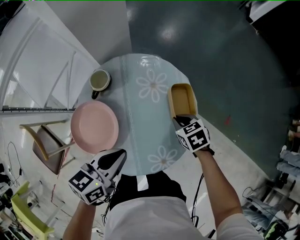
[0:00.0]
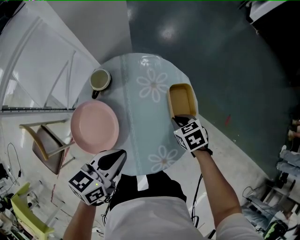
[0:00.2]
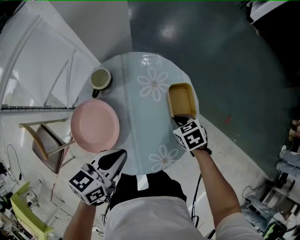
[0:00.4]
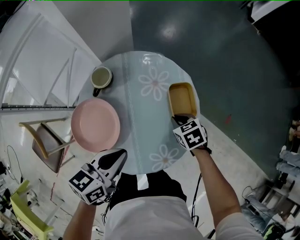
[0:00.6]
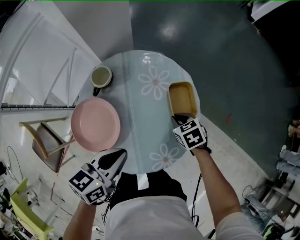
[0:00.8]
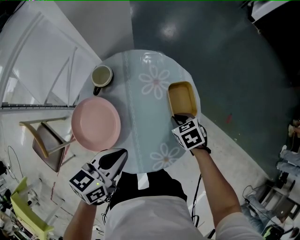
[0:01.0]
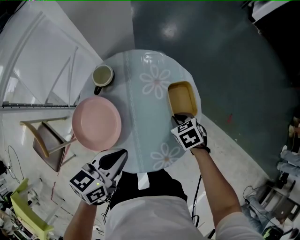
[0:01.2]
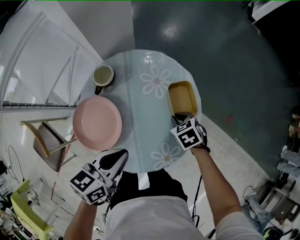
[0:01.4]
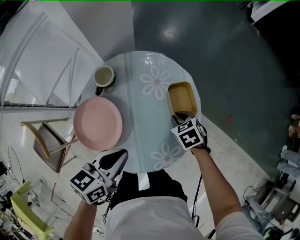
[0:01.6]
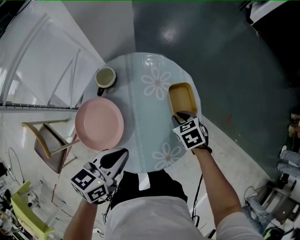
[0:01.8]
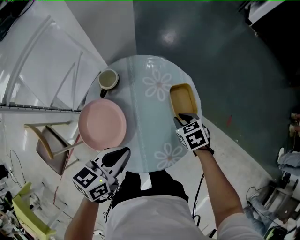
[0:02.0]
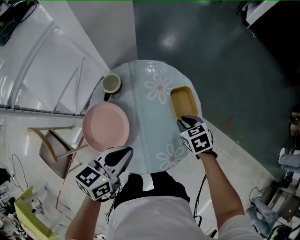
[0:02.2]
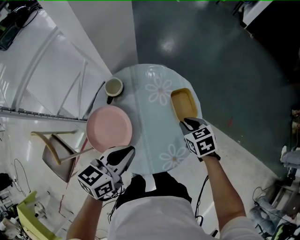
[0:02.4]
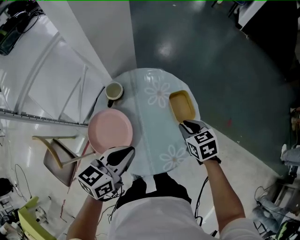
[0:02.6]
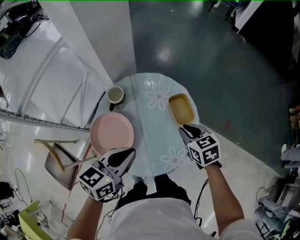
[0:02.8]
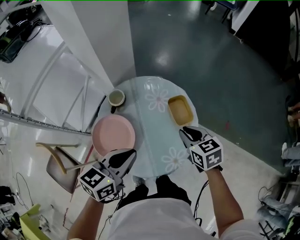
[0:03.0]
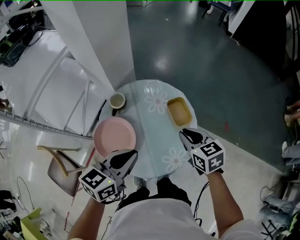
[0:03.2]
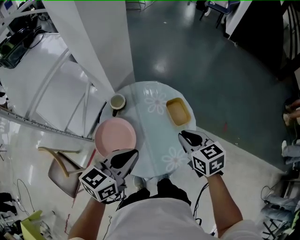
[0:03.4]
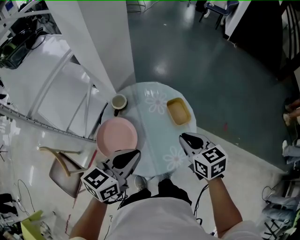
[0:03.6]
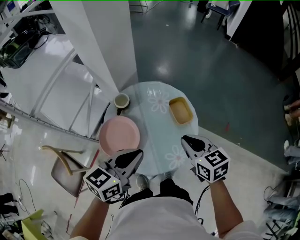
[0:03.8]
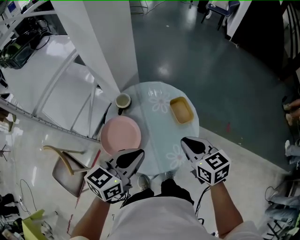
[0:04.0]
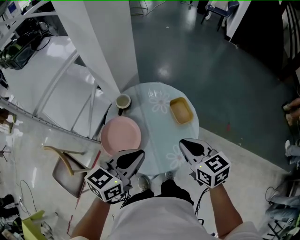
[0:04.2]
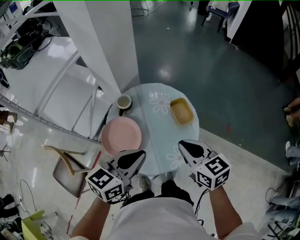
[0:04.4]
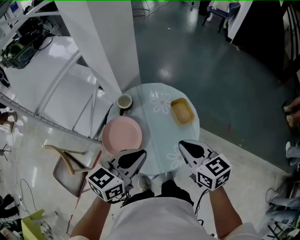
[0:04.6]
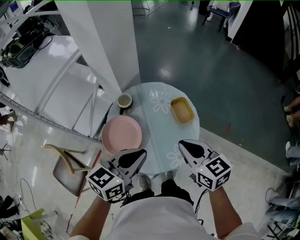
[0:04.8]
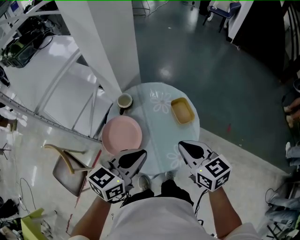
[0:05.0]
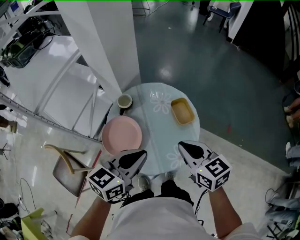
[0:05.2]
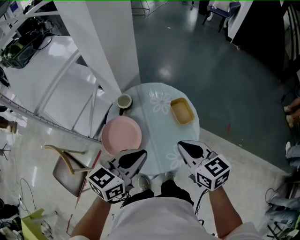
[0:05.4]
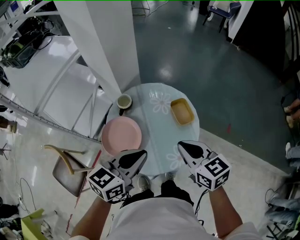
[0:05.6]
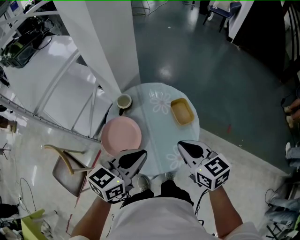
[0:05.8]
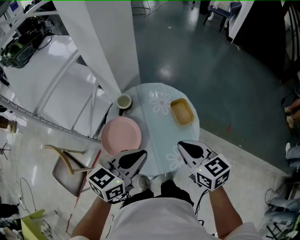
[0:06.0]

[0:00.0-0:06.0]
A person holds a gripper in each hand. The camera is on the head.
0:00.0 to 0:01.6: There are only small adjustments of the grippers.
0:01.6 to 0:03.0: The right gripper travels upward by about 20 cm, and changes its angle by roughly 30 degrees. Meanwhile the left gripper goes about 10 cm upward.
0:03.0 to 0:04.4: The right gripper goes some 15 cm upward and backward. Meanwhile the left gripper shifts some 5 cm upward.
0:04.4 to 0:06.0: Both grippers stay put.

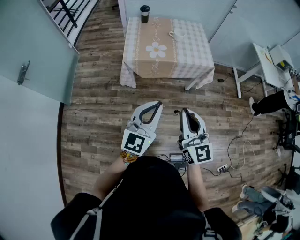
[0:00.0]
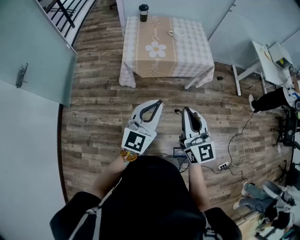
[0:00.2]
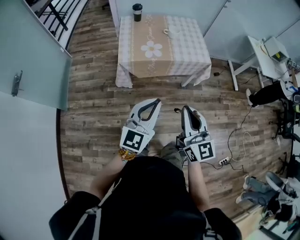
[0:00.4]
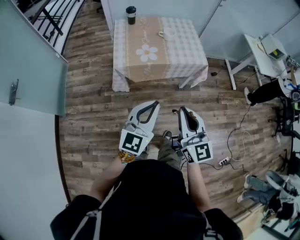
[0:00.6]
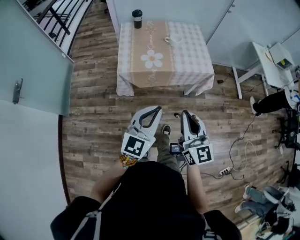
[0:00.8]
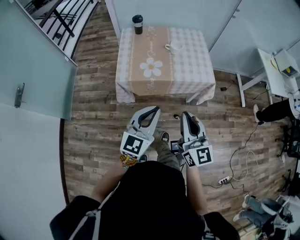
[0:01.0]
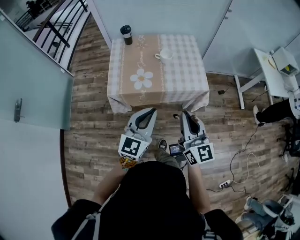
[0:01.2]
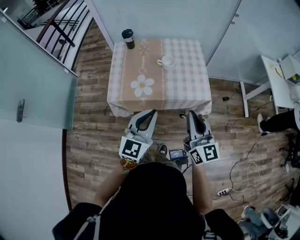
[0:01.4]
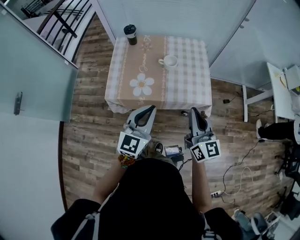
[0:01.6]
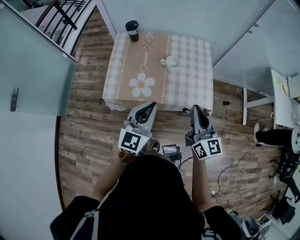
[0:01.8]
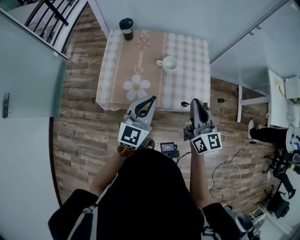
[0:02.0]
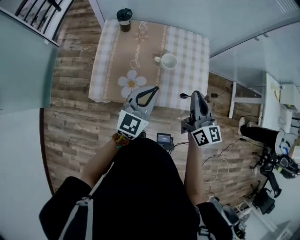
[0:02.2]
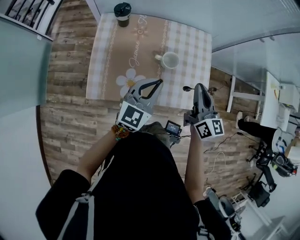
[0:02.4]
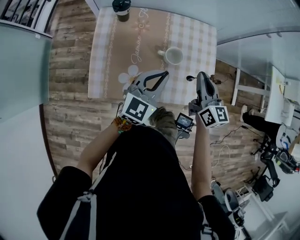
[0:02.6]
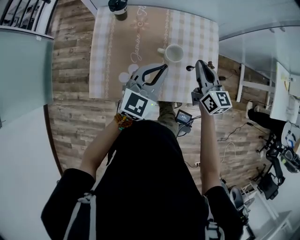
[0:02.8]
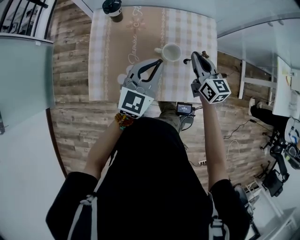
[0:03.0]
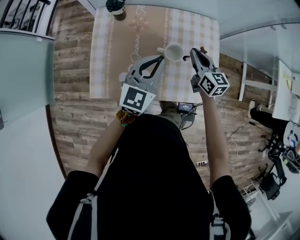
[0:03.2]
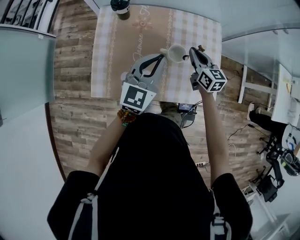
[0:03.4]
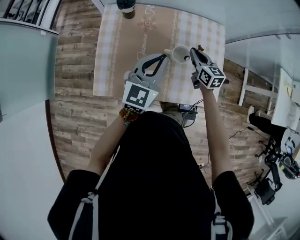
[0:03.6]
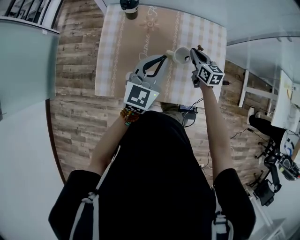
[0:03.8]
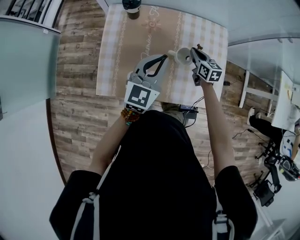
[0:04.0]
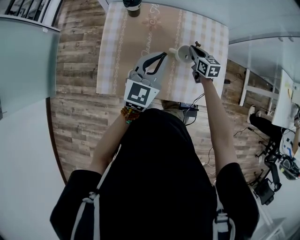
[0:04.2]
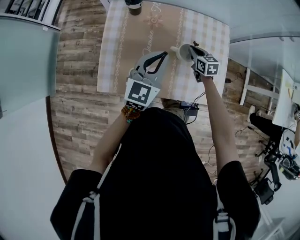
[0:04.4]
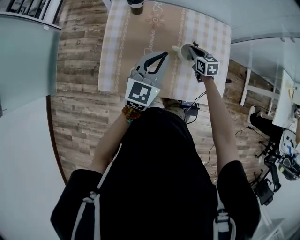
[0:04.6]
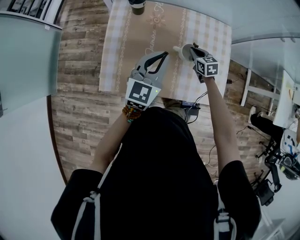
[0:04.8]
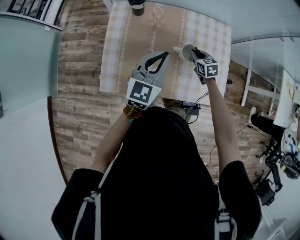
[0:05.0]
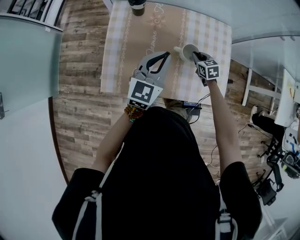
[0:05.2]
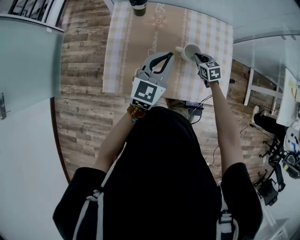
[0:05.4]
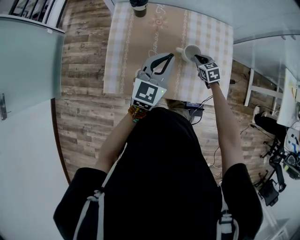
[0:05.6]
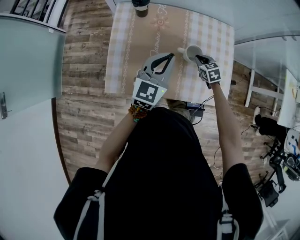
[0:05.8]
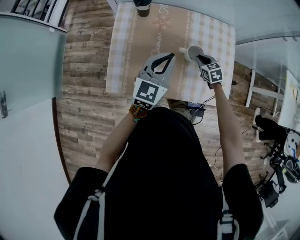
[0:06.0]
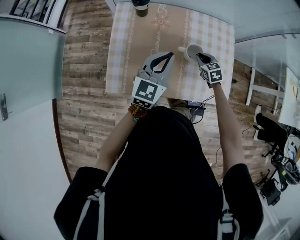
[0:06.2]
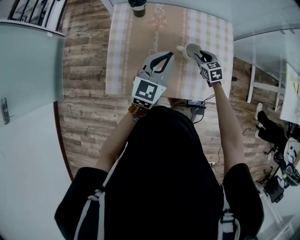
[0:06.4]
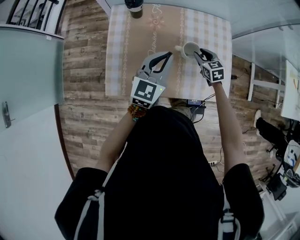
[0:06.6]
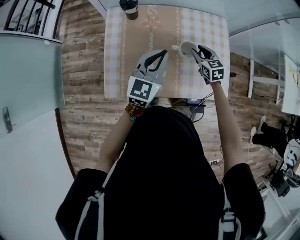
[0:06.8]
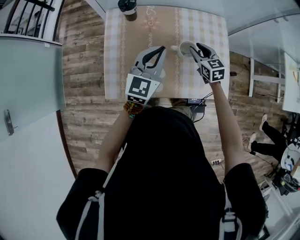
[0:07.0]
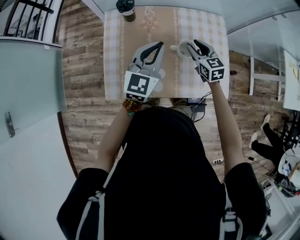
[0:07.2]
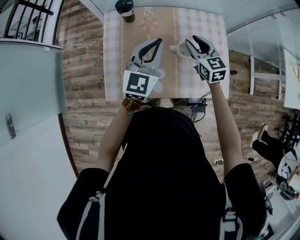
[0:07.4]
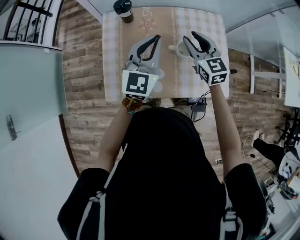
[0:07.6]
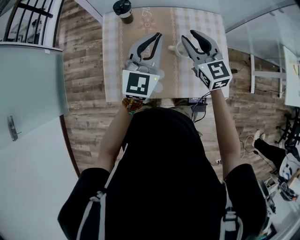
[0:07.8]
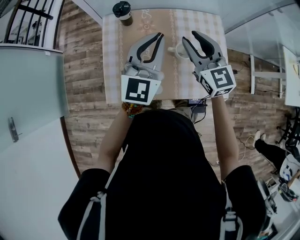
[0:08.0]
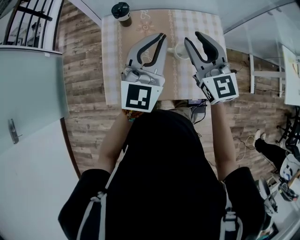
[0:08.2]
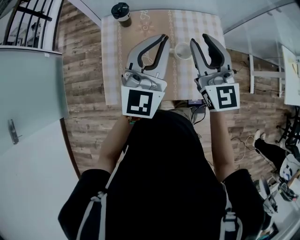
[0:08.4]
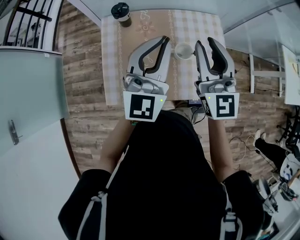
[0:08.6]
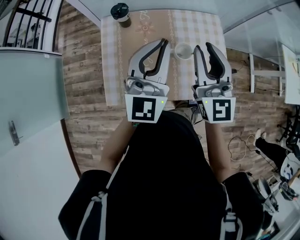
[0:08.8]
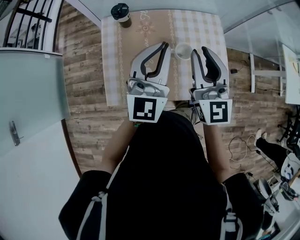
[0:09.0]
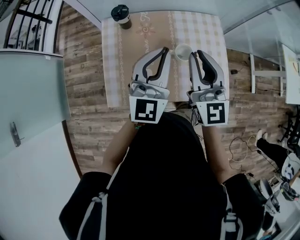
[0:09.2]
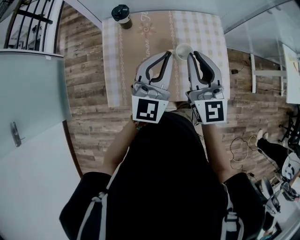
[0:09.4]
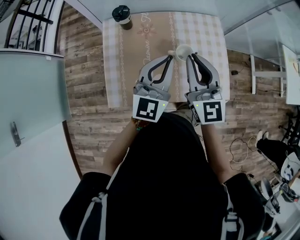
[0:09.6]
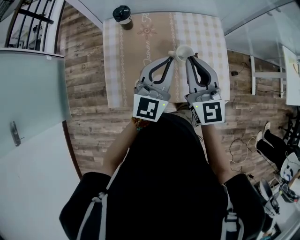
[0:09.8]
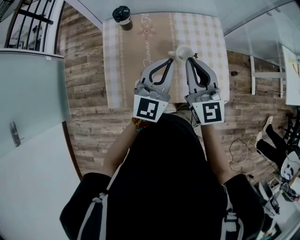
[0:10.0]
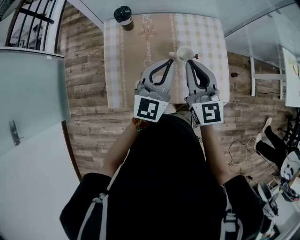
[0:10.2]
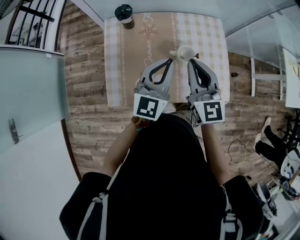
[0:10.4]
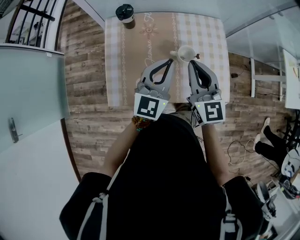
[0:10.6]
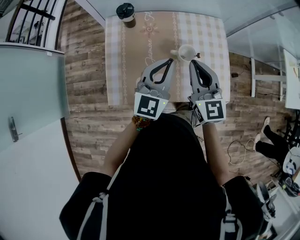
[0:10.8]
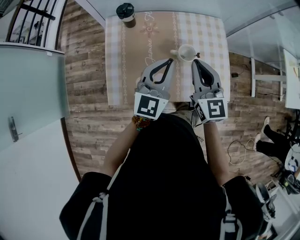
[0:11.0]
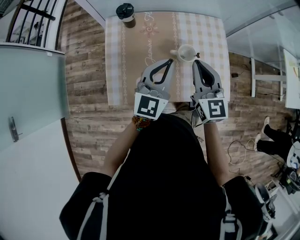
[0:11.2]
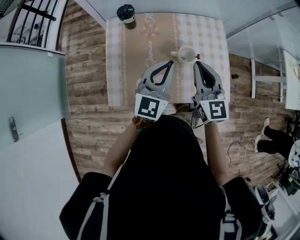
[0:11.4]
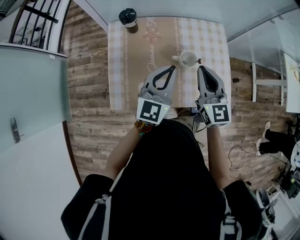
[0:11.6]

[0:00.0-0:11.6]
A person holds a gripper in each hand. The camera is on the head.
0:00.0 to 0:01.4: The right gripper shifts about 40 cm forward and to the right, while the left gripper travels forward by about 35 cm.
0:01.4 to 0:02.8: Both grippers move forward, approximately 40 cm. The right gripper turns by approximately 20 degrees.
0:02.8 to 0:04.4: The right gripper moves downward and forward, approximately 20 cm, and changes its angle by about 30 degrees; the left gripper moves to the left, about 5 cm.
0:04.4 to 0:05.8: The right gripper ends up roughly 5 cm from where it was.
0:05.8 to 0:07.2: The right gripper is displaced upward by approximately 15 cm, changes its angle by about 20 degrees, and opens.
0:07.2 to 0:08.8: The right gripper moves upward, some 25 cm, and angles its fingers upward, by about 30 degrees. The left gripper shifts approximately 10 cm upward.
0:08.8 to 0:10.2: The two grippers go roughly 10 cm downward.
0:10.2 to 0:11.6: The right gripper shifts by about 5 cm.

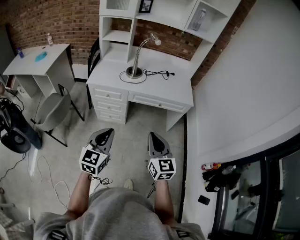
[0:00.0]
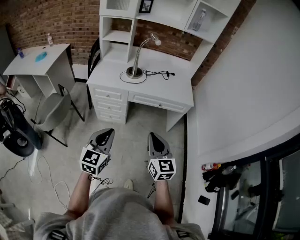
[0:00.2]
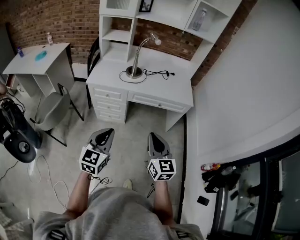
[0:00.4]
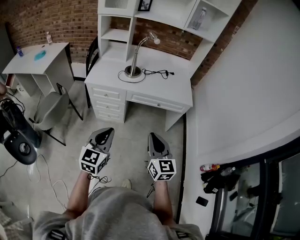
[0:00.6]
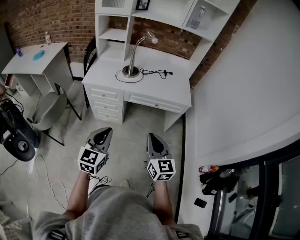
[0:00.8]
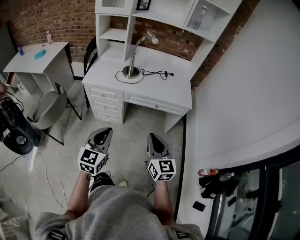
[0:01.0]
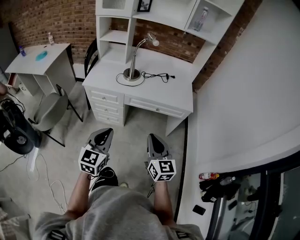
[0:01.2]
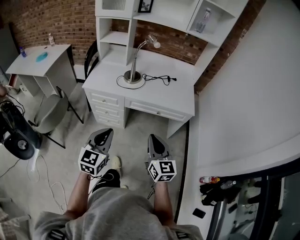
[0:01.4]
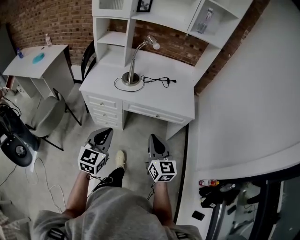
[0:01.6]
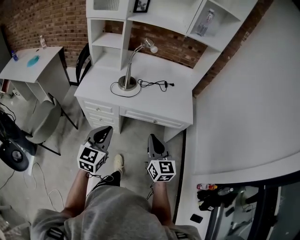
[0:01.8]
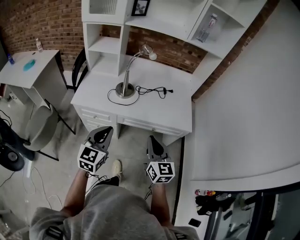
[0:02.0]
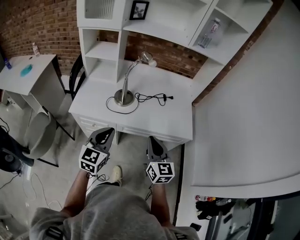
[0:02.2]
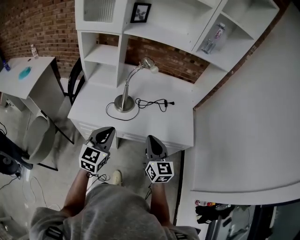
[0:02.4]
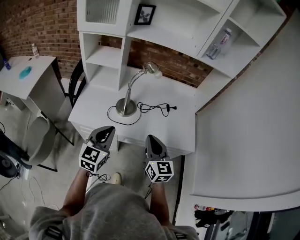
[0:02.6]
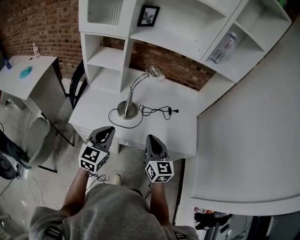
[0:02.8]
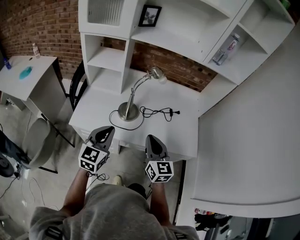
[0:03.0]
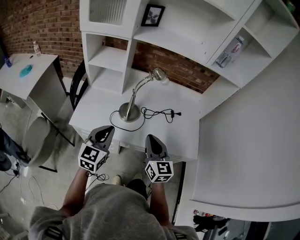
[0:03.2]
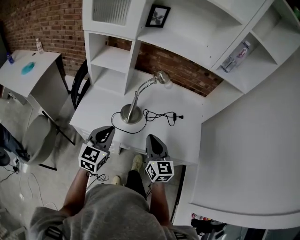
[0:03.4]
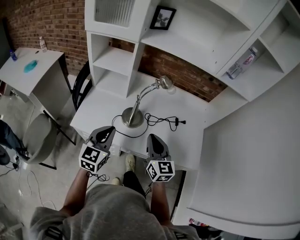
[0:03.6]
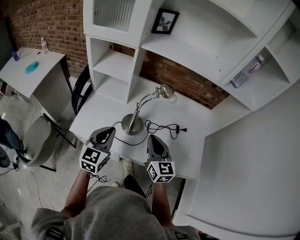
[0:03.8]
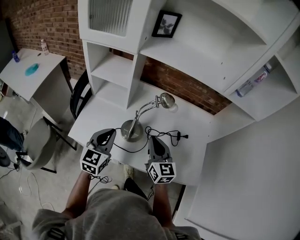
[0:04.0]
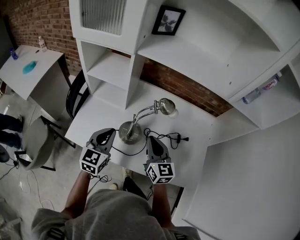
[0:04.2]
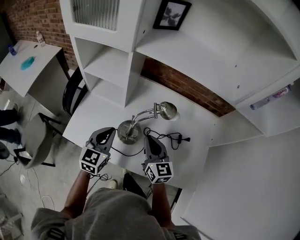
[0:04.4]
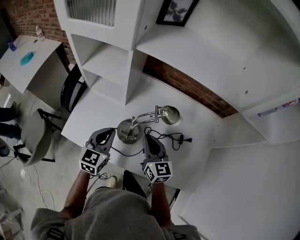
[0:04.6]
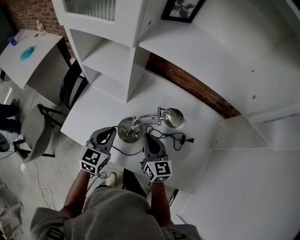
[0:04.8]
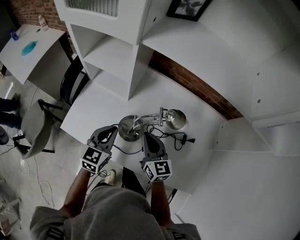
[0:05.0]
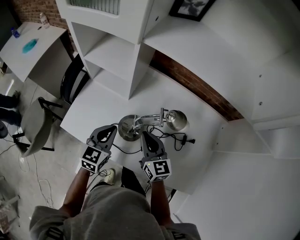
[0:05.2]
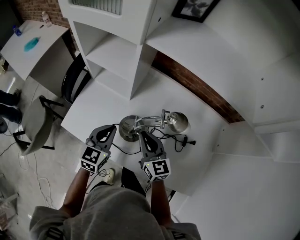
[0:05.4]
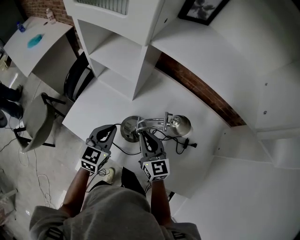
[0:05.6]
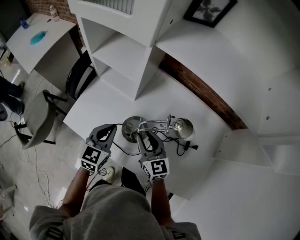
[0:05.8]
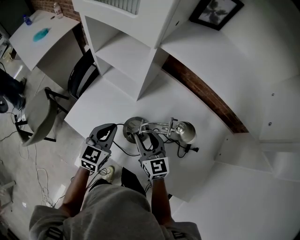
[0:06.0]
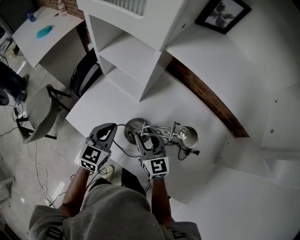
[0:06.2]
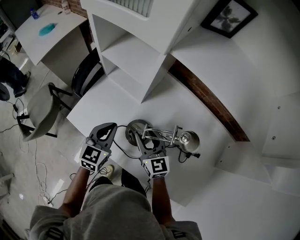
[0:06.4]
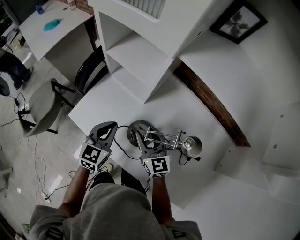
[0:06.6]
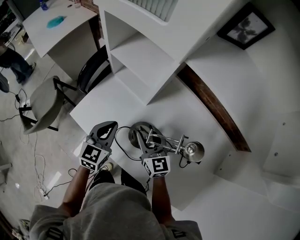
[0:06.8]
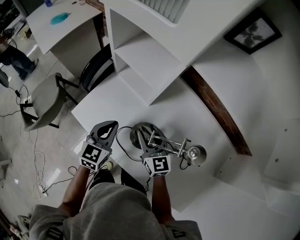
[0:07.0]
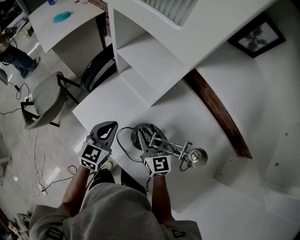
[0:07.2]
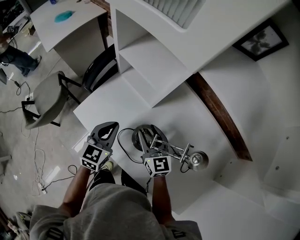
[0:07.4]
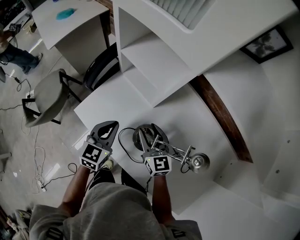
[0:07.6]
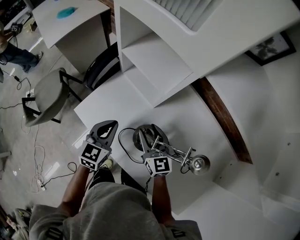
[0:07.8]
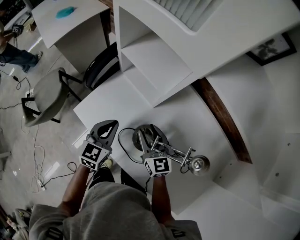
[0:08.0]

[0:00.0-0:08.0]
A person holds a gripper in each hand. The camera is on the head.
0:00.0 to 0:01.6: The two grippers go roughly 15 cm forward and to the right.
0:01.6 to 0:03.2: Both grippers move forward, about 30 cm.
0:03.2 to 0:04.8: The right gripper travels forward by roughly 25 cm. Meanwhile the left gripper shifts some 25 cm forward and downward.
0:04.8 to 0:06.4: The right gripper goes approximately 5 cm to the left, turns by roughly 20 degrees, and opens up.
0:06.4 to 0:08.0: The right gripper shifts by approximately 5 cm. The left gripper shifts by about 5 cm.
